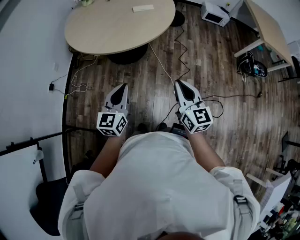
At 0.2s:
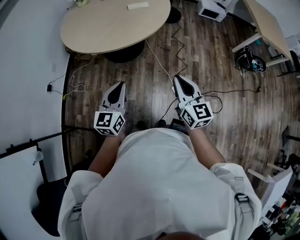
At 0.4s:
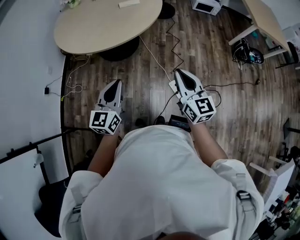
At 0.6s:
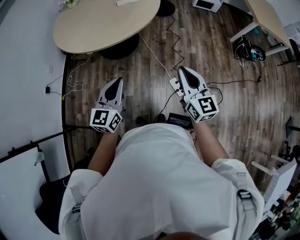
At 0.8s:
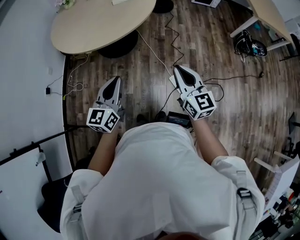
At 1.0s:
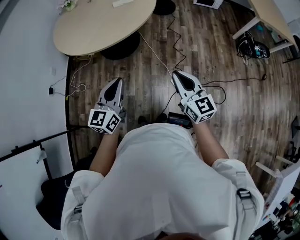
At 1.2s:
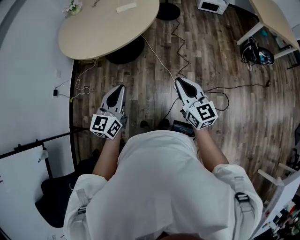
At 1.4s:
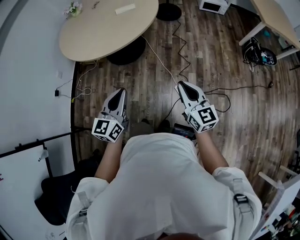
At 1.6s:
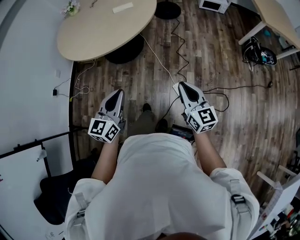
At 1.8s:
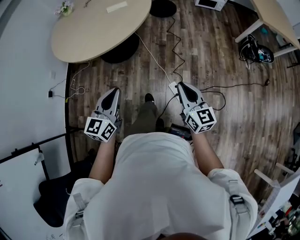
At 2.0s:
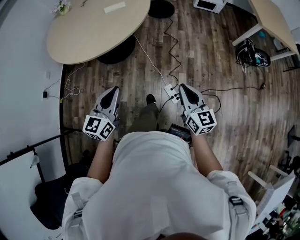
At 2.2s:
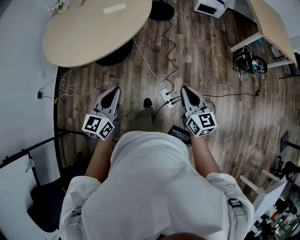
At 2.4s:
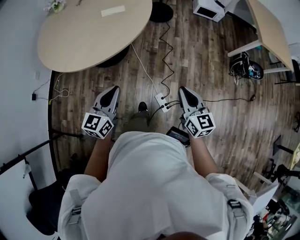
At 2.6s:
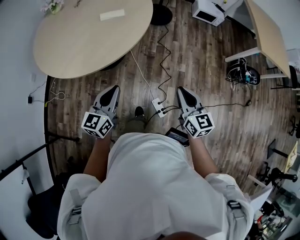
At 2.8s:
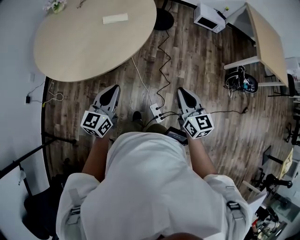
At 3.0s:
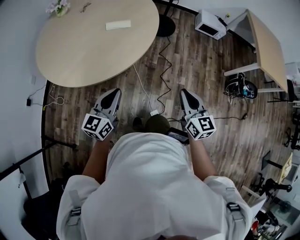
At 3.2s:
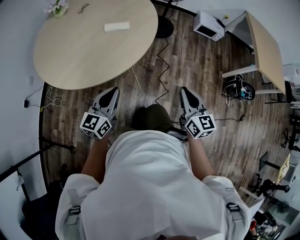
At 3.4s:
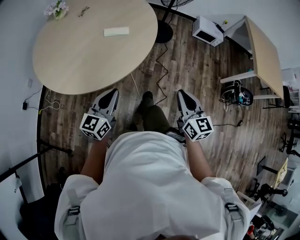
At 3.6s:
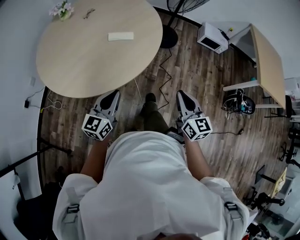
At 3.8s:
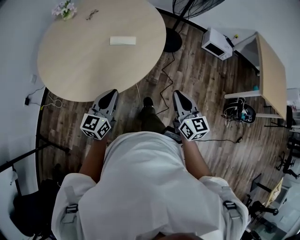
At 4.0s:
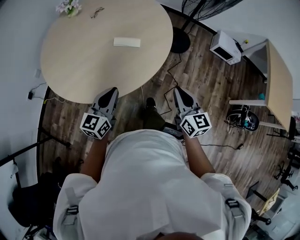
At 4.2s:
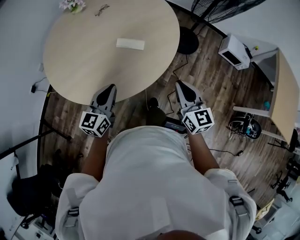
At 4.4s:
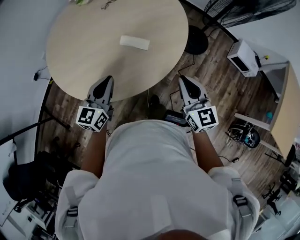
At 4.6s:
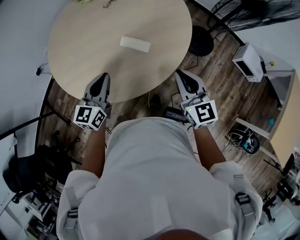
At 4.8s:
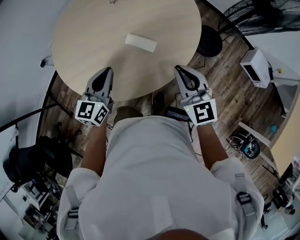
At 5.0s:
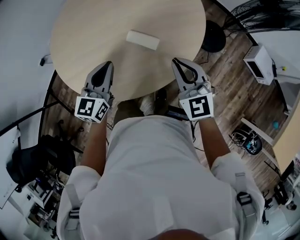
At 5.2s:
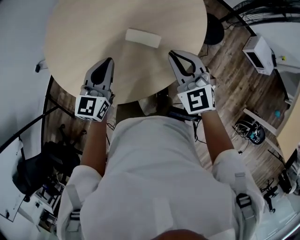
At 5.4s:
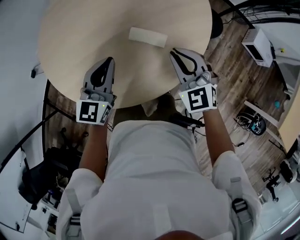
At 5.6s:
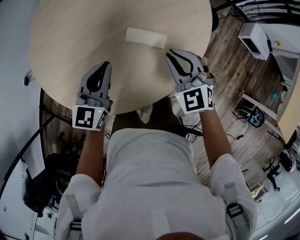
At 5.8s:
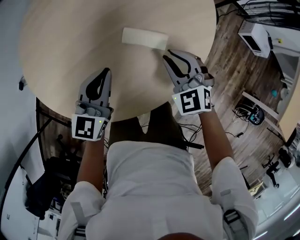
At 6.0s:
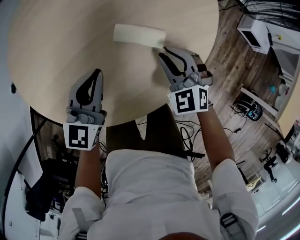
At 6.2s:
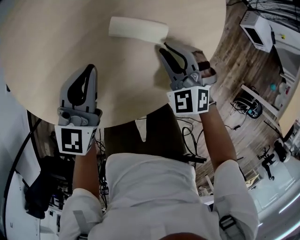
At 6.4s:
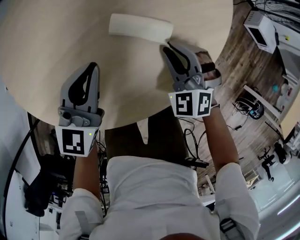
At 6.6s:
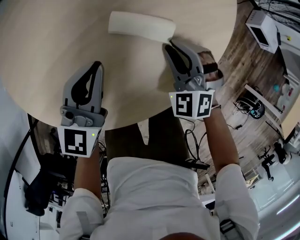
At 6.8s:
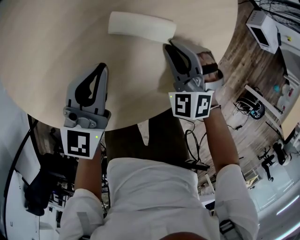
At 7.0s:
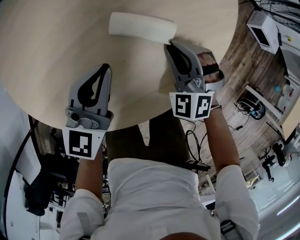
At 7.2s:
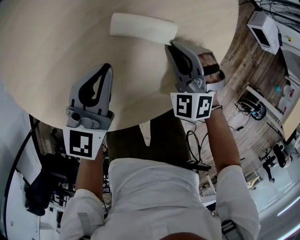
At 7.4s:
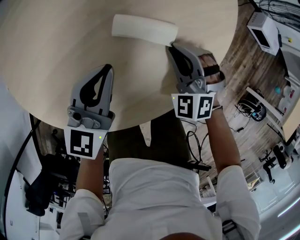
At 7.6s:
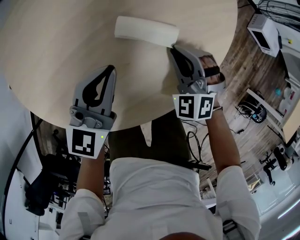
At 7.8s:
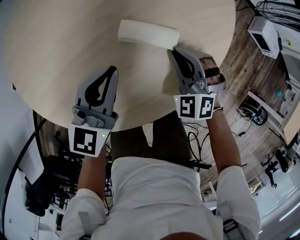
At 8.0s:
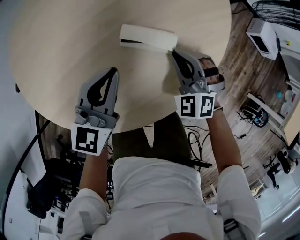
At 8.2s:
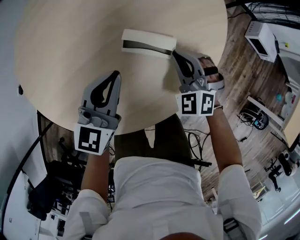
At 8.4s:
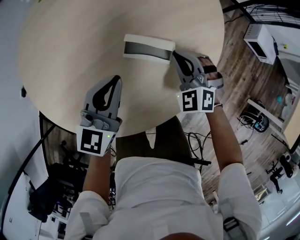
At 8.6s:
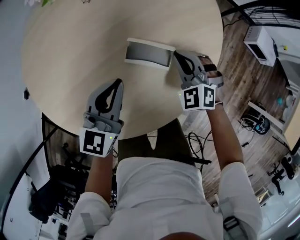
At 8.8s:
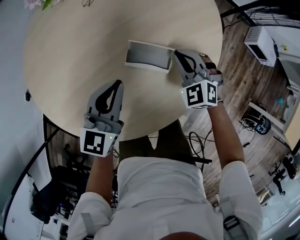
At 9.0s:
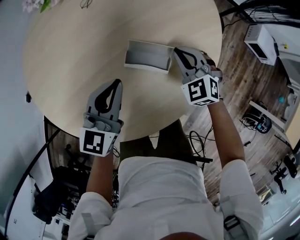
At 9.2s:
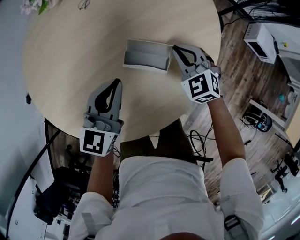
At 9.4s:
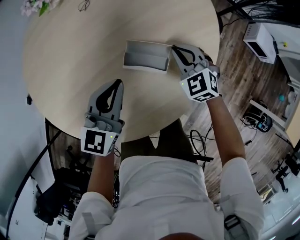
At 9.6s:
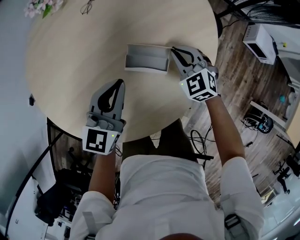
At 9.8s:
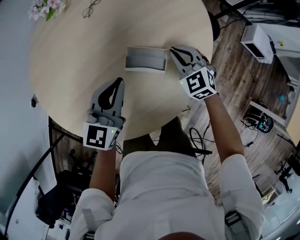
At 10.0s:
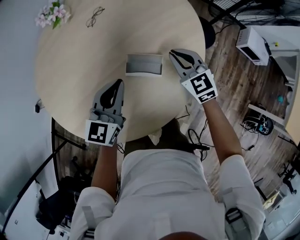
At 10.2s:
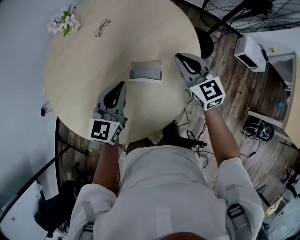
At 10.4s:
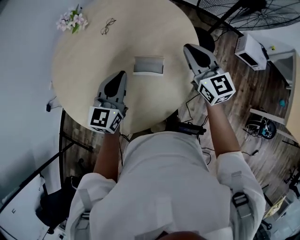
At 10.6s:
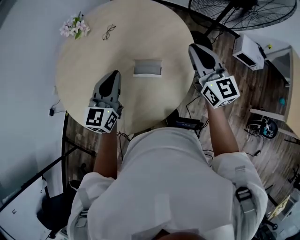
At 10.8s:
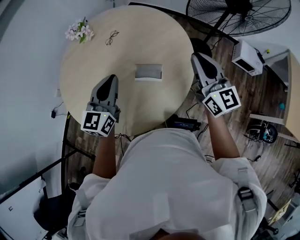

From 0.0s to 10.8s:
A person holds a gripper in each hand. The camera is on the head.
From 0.0s to 1.6s: The grippers both shift to the right by approximately 20 cm.
From 1.6s to 3.0s: The grippers both shift forward by some 30 cm.
From 3.0s to 4.6s: The right gripper changes place by some 40 cm, and changes its angle by about 40 degrees. Meanwhile the left gripper ends up roughly 30 cm from where it was, and changes its angle by some 30 degrees.
From 4.6s to 6.2s: The left gripper heads forward and downward, covering roughly 20 cm, while the right gripper goes about 30 cm downward, forward and to the left, and changes its angle by about 40 degrees.
From 6.2s to 7.8s: The grippers make only small movements.
From 7.8s to 9.2s: The left gripper moves some 5 cm. Meanwhile the right gripper moves forward, roughly 10 cm, and changes its angle by about 20 degrees.
From 9.2s to 10.8s: The left gripper moves upward, some 20 cm, while the right gripper heads upward, covering roughly 35 cm, and points its fingers approximately 40 degrees further upward.

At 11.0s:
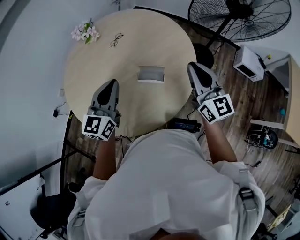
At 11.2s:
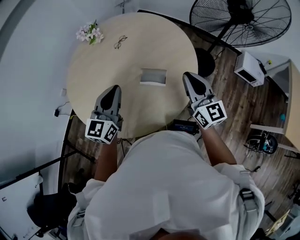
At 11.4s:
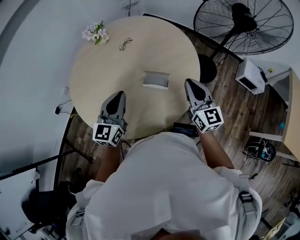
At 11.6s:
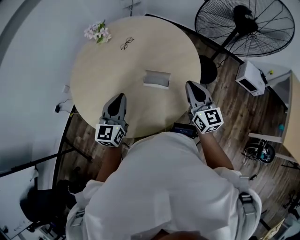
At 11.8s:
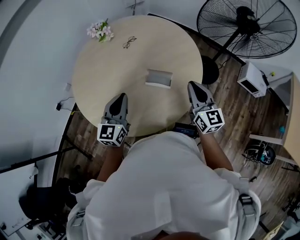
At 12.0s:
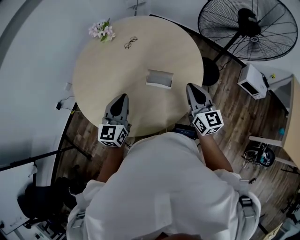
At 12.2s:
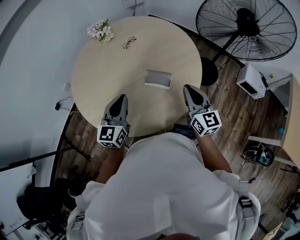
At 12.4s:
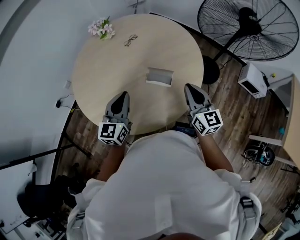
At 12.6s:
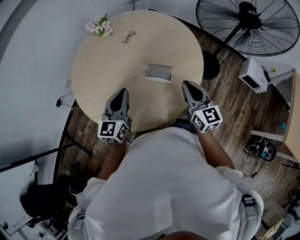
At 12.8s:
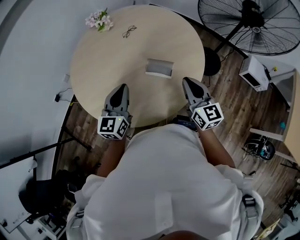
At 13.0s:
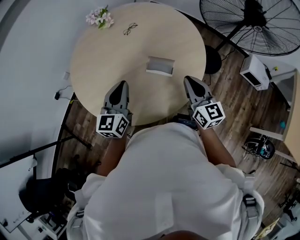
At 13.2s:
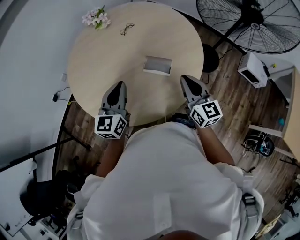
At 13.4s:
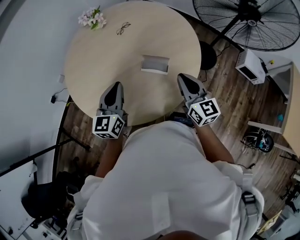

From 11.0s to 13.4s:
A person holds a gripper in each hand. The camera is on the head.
From 11.0s to 12.2s: The right gripper moves downward, approximately 5 cm; the left gripper goes roughly 5 cm backward.
From 12.2s to 13.4s: There are only small adjustments of the grippers.

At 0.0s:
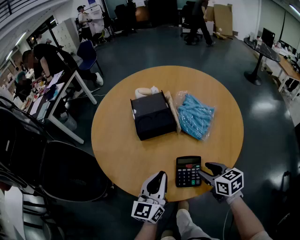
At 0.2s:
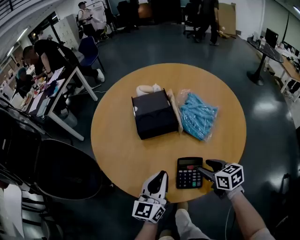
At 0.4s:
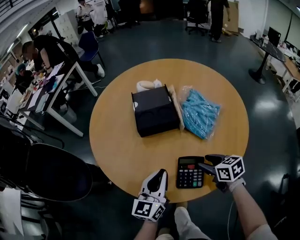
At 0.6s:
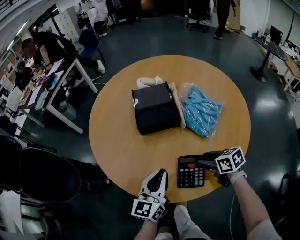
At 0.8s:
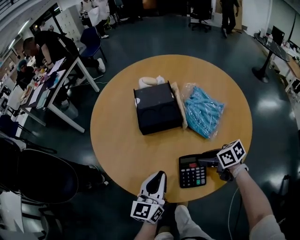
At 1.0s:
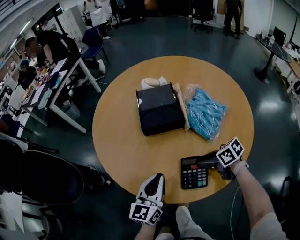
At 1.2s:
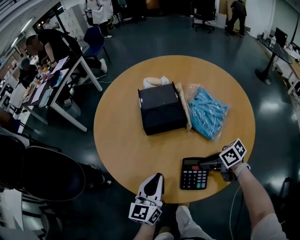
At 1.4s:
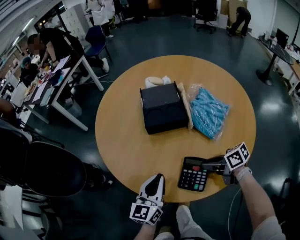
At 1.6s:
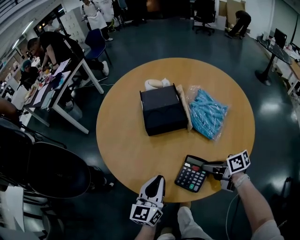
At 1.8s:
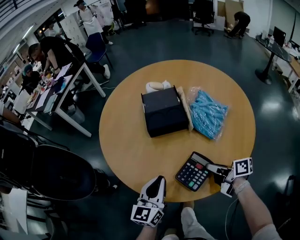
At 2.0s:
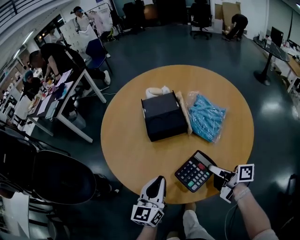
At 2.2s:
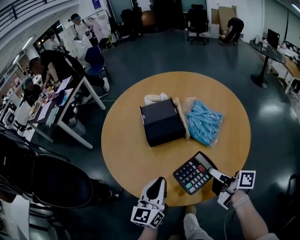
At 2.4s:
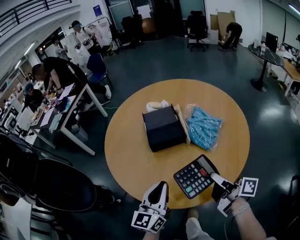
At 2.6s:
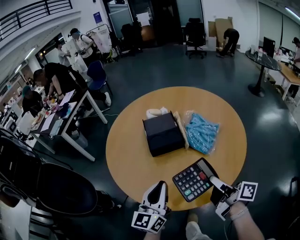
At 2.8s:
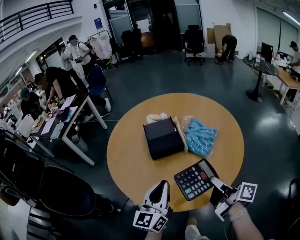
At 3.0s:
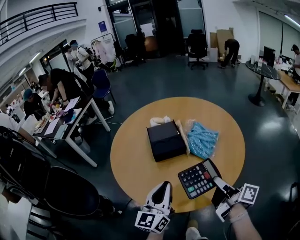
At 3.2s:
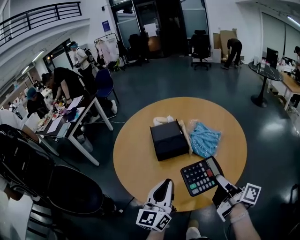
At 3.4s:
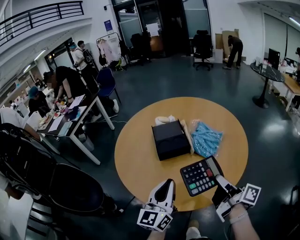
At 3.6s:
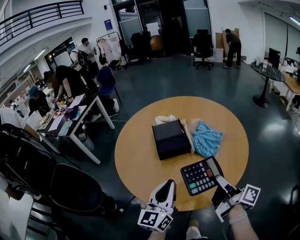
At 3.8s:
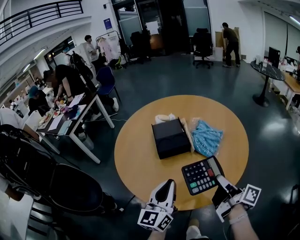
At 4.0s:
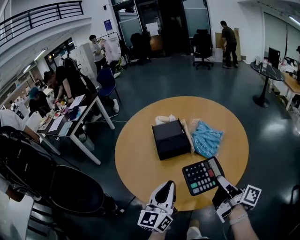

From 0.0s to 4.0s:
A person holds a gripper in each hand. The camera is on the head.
From 0.0s to 1.4s: The right gripper changes place by about 5 cm, turns by some 40 degrees, and closes, while the left gripper ends up approximately 5 cm from where it was.
From 1.4s to 2.6s: Both grippers travel together upward, about 15 cm. The right gripper angles its fingers upward, by roughly 30 degrees.
From 2.6s to 4.0s: There are only small adjustments of the grippers.

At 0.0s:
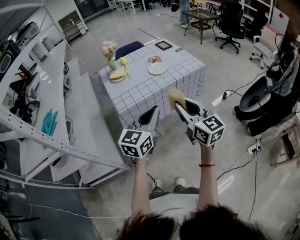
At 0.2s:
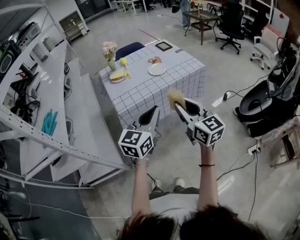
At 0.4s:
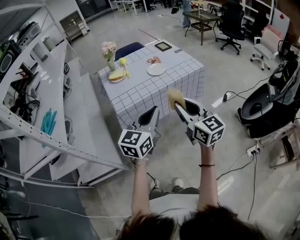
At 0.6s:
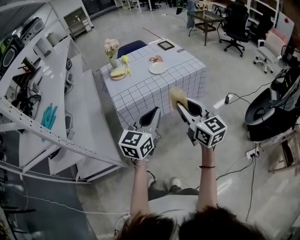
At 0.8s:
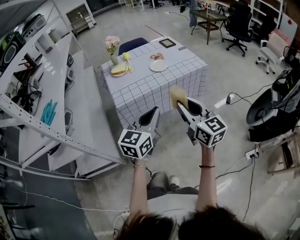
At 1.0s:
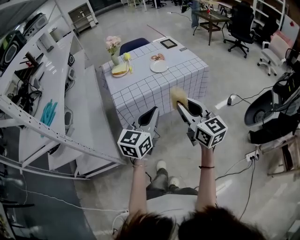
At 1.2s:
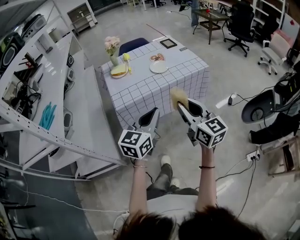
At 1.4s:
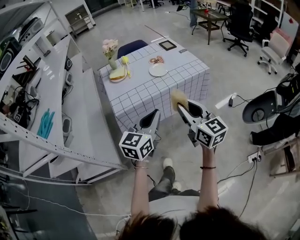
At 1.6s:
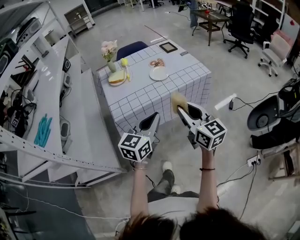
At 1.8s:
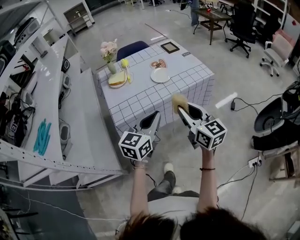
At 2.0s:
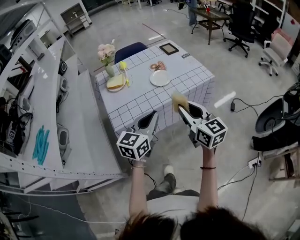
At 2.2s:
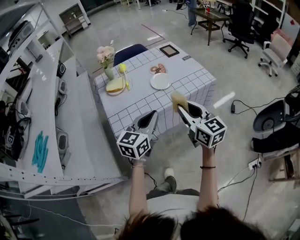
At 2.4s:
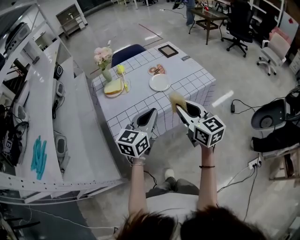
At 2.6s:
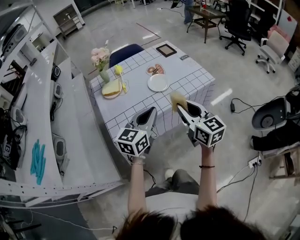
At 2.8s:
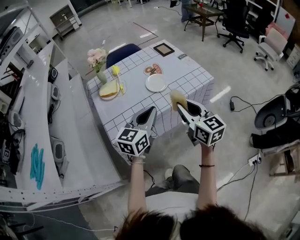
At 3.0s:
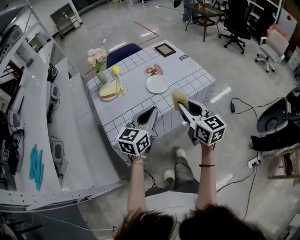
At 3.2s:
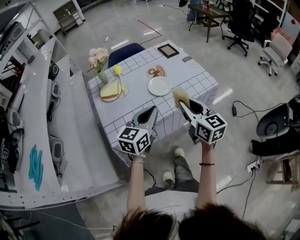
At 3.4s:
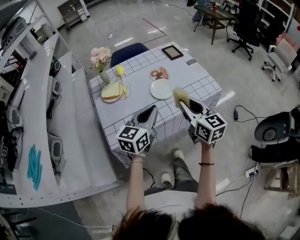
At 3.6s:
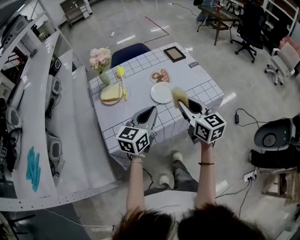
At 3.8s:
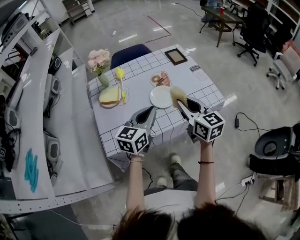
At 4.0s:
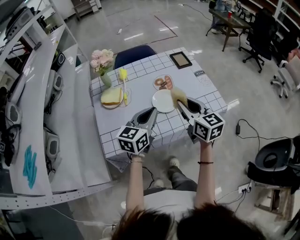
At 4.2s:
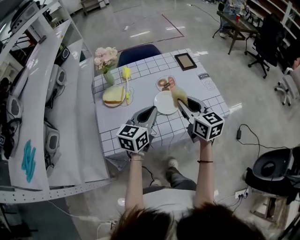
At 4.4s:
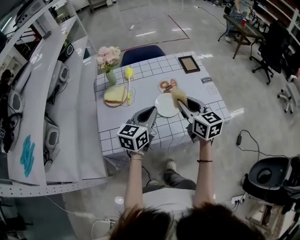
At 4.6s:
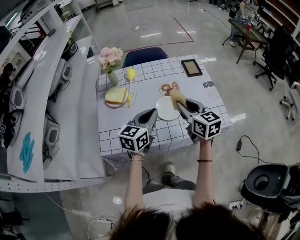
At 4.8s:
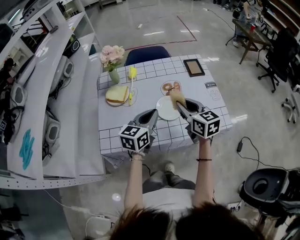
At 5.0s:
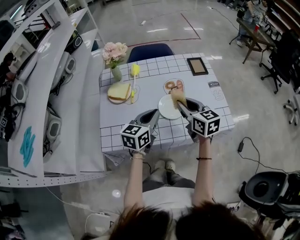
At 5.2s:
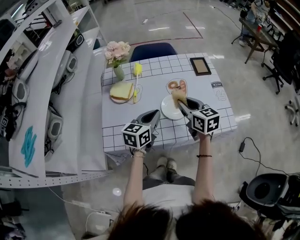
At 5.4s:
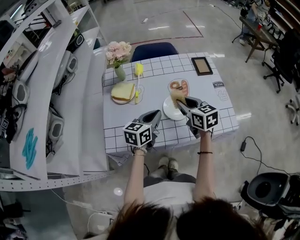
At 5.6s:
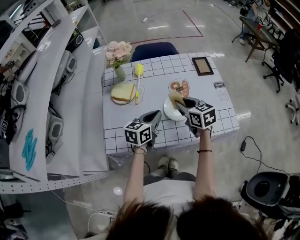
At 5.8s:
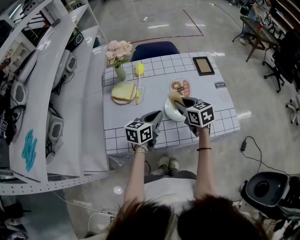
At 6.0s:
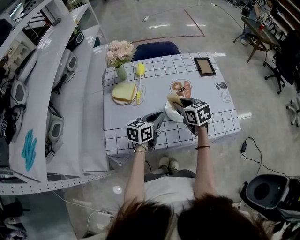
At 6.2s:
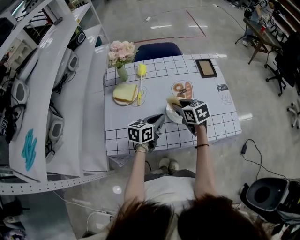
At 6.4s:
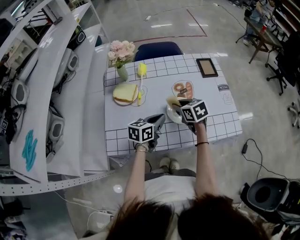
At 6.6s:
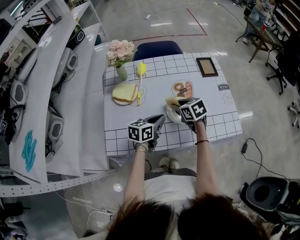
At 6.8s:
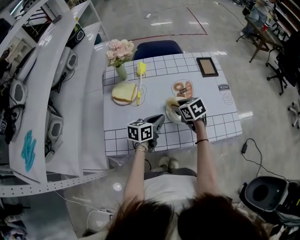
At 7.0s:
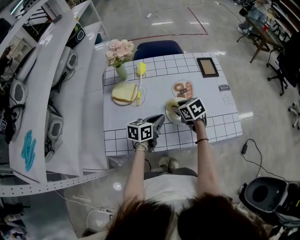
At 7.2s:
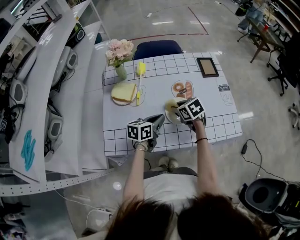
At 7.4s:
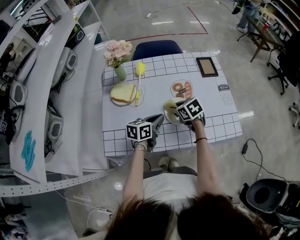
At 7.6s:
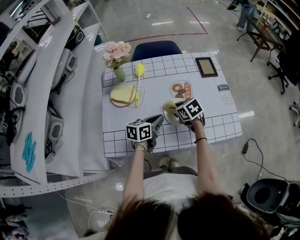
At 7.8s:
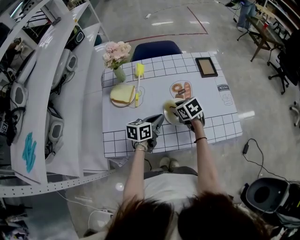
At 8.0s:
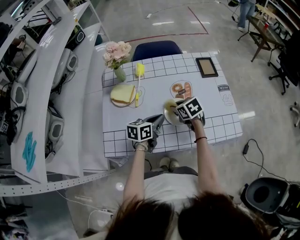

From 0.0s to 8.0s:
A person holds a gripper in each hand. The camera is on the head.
From 0.0s to 1.6s: Both grippers move forward, roughly 10 cm.
From 1.6s to 3.2s: The two grippers go some 20 cm forward.
From 3.2s to 4.8s: The grippers both shift forward by some 20 cm. The right gripper rotates some 20 degrees.
From 4.8s to 6.4s: The right gripper travels downward, forward and to the left by roughly 15 cm, and swivels approximately 30 degrees. The left gripper travels downward by roughly 10 cm.
From 6.4s to 8.0s: The grippers move only a little.
